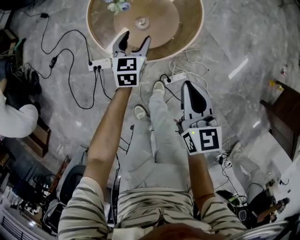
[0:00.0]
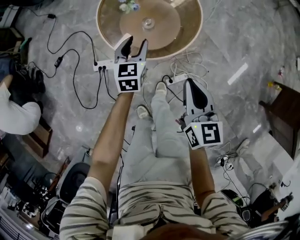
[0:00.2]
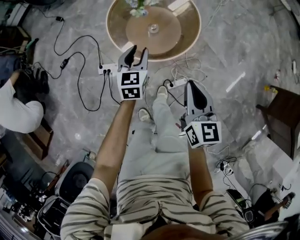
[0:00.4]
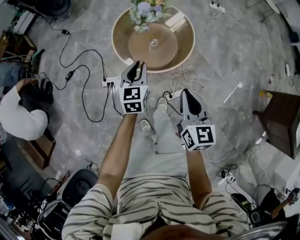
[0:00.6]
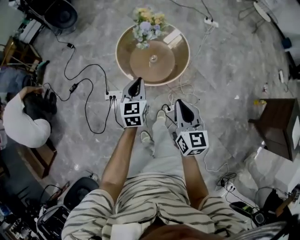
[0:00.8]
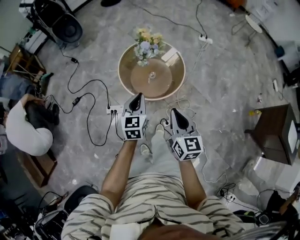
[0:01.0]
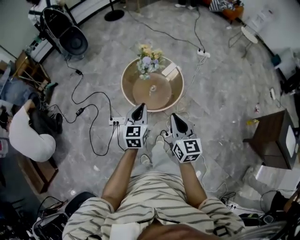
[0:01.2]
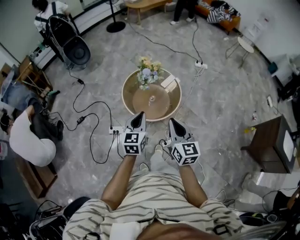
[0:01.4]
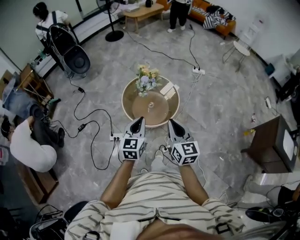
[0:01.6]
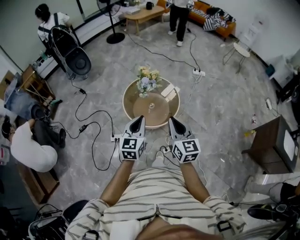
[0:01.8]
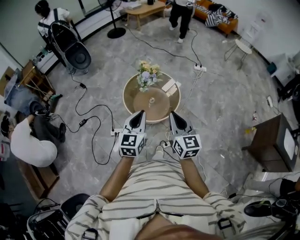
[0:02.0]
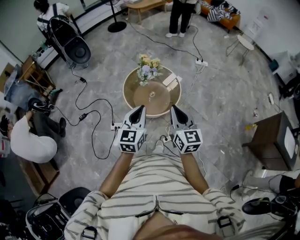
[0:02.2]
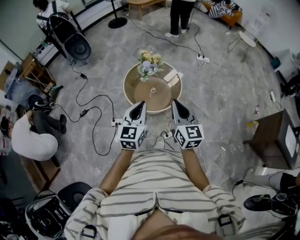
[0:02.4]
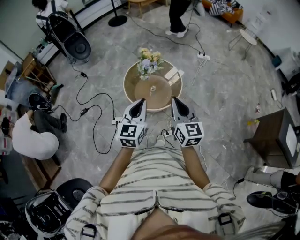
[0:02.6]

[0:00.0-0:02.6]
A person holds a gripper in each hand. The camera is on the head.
0:00.0 to 0:01.2: The right gripper goes some 30 cm upward, while the left gripper is displaced upward and backward by some 40 cm, and closes.
0:01.2 to 0:02.6: Both grippers travel together upward, roughly 10 cm.

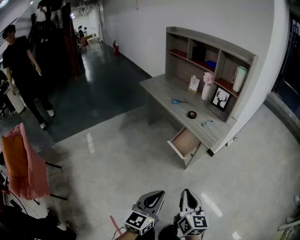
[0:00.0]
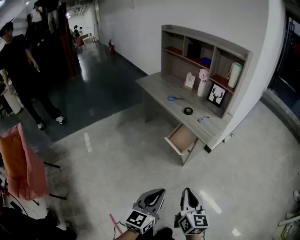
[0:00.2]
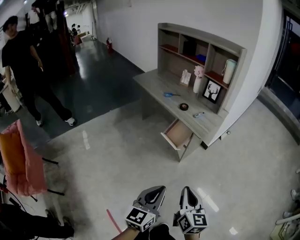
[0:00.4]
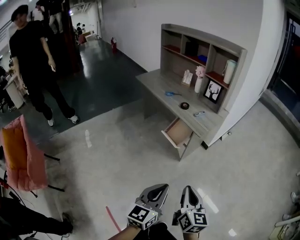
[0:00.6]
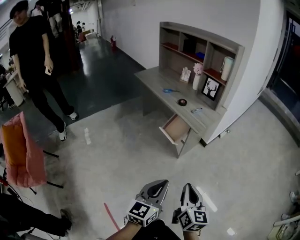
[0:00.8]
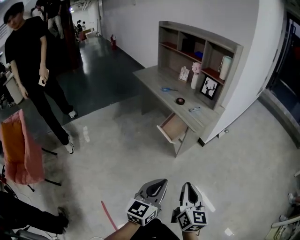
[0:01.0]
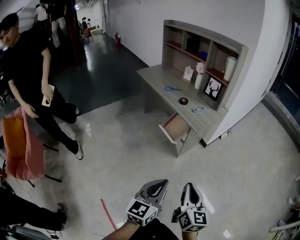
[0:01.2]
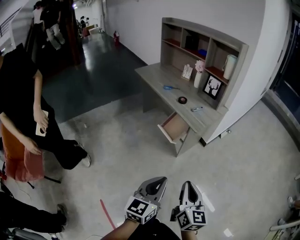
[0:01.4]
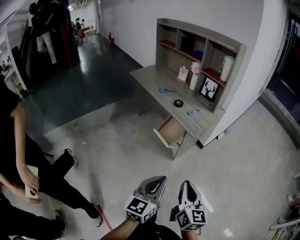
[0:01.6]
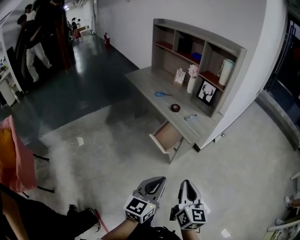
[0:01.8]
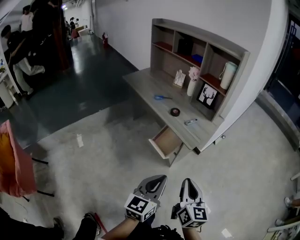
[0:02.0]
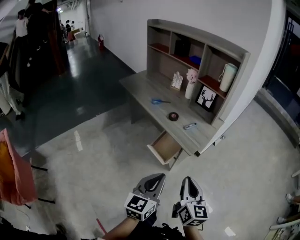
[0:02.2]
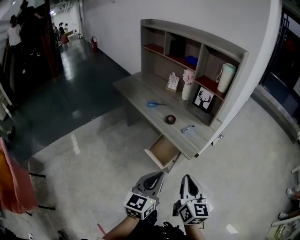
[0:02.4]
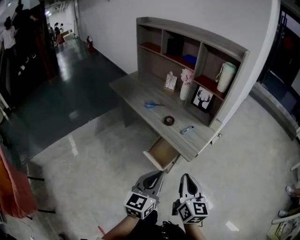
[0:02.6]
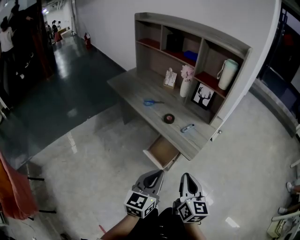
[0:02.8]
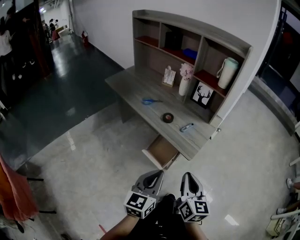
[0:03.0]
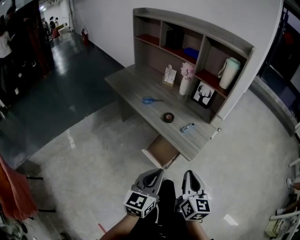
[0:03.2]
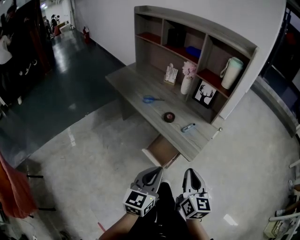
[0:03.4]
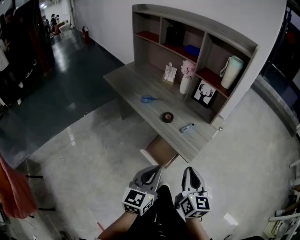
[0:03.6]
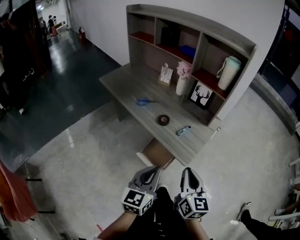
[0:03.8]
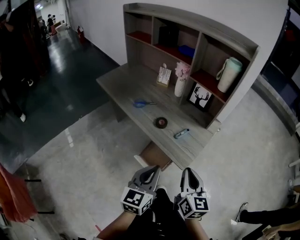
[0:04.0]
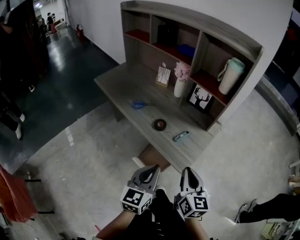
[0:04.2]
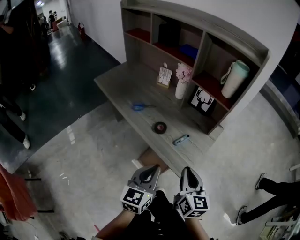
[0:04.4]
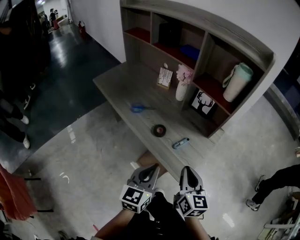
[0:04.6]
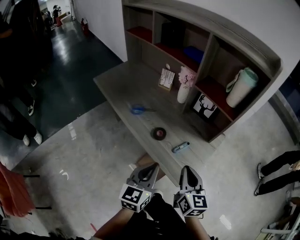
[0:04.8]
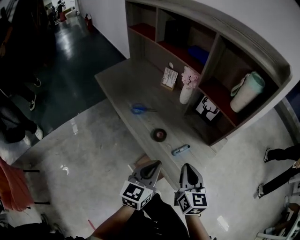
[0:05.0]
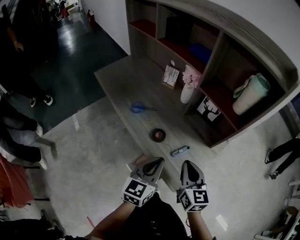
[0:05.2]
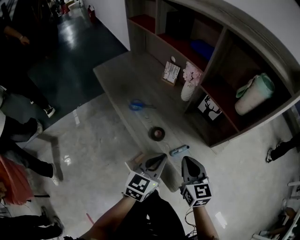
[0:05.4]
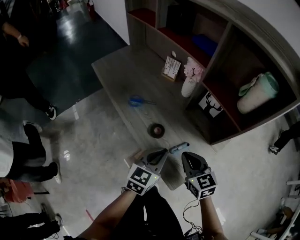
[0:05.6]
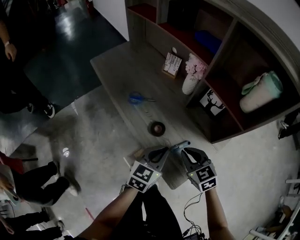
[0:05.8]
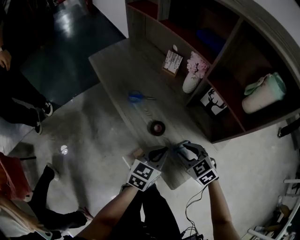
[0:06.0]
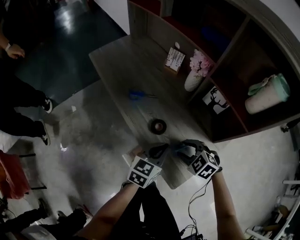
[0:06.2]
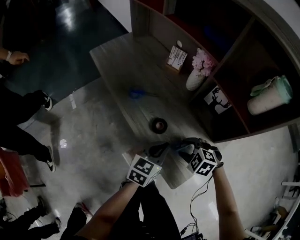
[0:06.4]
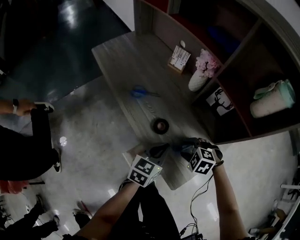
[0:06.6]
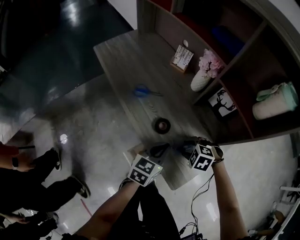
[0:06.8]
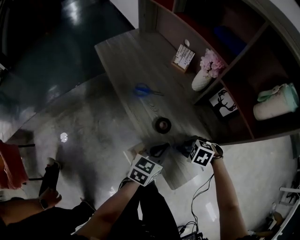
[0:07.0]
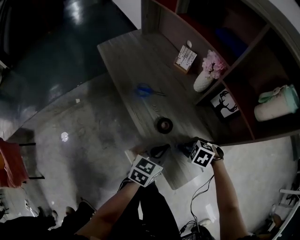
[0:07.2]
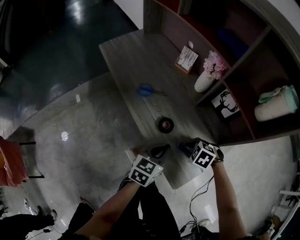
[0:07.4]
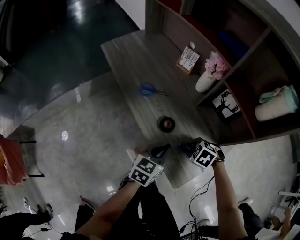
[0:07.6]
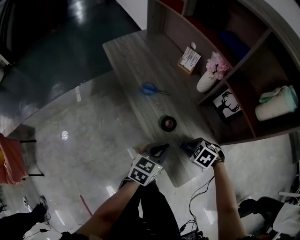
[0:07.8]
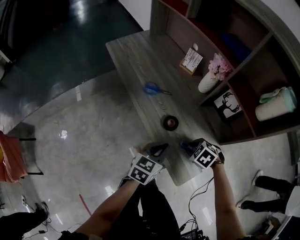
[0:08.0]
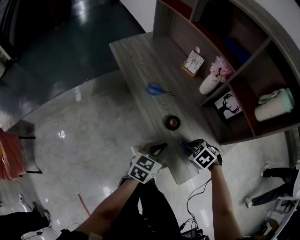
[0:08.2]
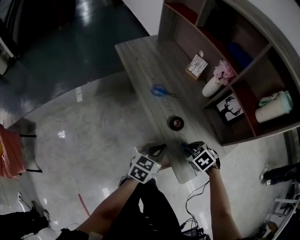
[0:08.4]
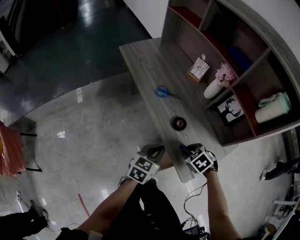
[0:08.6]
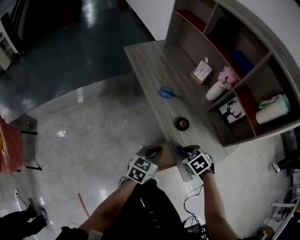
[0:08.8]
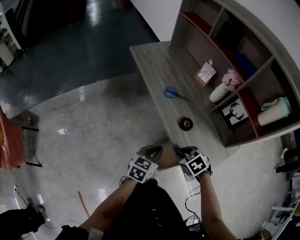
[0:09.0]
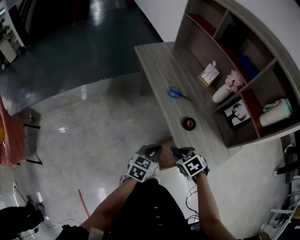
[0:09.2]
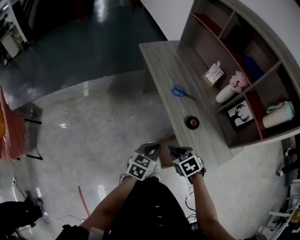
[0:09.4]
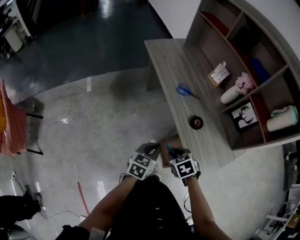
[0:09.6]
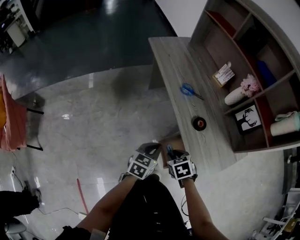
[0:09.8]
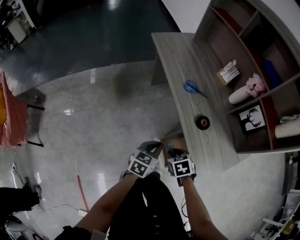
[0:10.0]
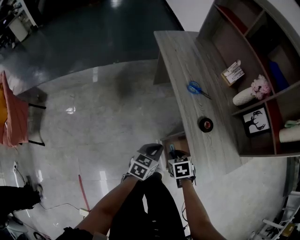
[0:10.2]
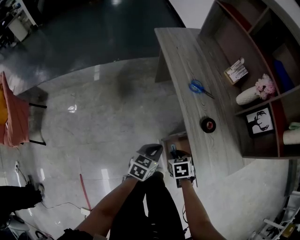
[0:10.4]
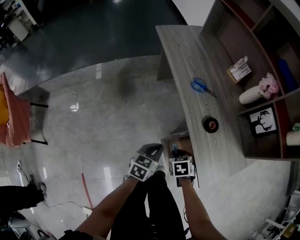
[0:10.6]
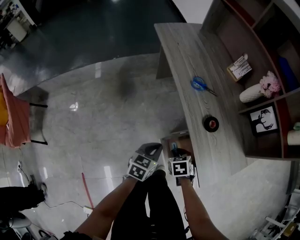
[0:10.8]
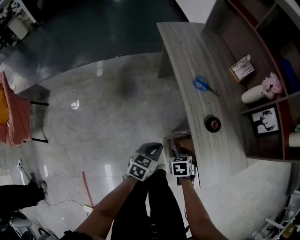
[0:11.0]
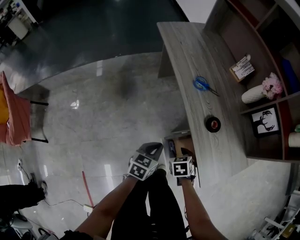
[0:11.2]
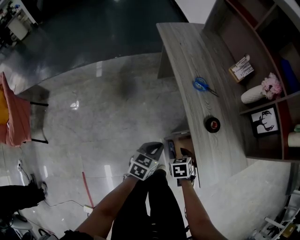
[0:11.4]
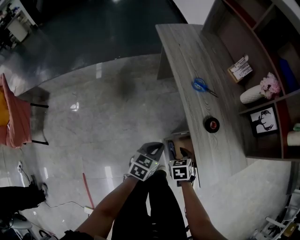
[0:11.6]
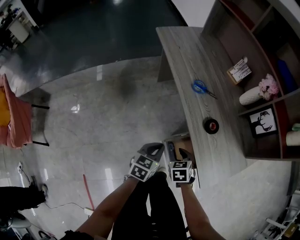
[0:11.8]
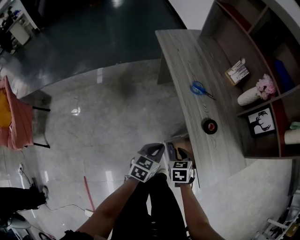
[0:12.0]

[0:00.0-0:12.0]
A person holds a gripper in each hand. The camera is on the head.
0:00.0 to 0:01.6: Both grippers move to the right, some 10 cm.
0:01.6 to 0:03.0: Both grippers travel together forward, roughly 25 cm.
0:03.0 to 0:04.4: The two grippers go about 15 cm forward.
0:04.4 to 0:06.0: Both grippers travel together forward and downward, some 20 cm. The right gripper angles its fingers downward, by some 30 degrees, and opens.
0:06.0 to 0:07.6: The right gripper moves downward, approximately 10 cm, and changes its angle by about 40 degrees.
0:07.6 to 0:09.0: The right gripper shifts by approximately 15 cm, while the left gripper shifts by roughly 15 cm.
0:09.0 to 0:10.4: Both grippers move downward and to the left, approximately 15 cm.
0:10.4 to 0:12.0: The grippers move only a little.

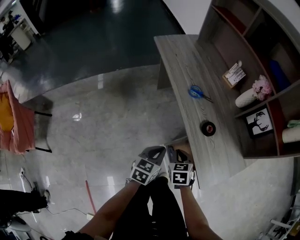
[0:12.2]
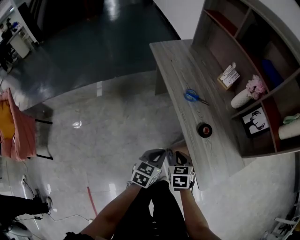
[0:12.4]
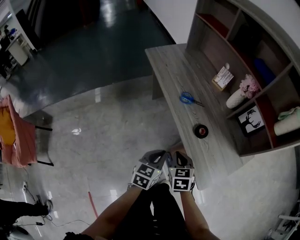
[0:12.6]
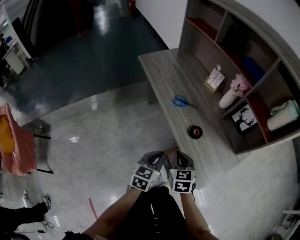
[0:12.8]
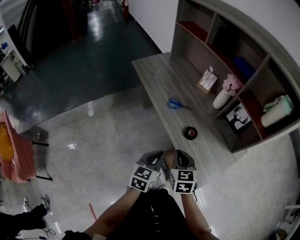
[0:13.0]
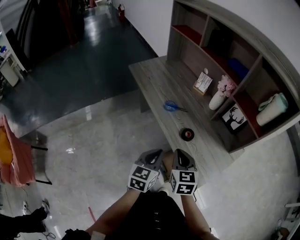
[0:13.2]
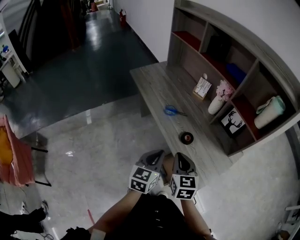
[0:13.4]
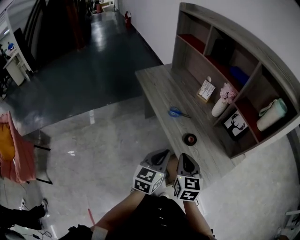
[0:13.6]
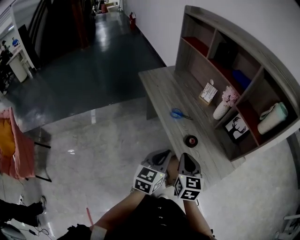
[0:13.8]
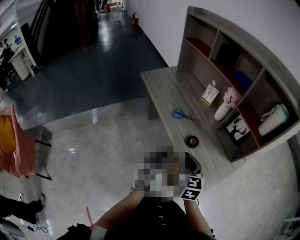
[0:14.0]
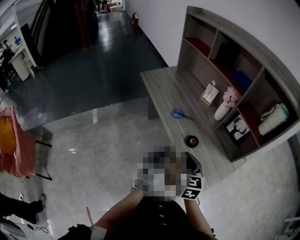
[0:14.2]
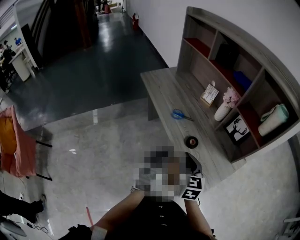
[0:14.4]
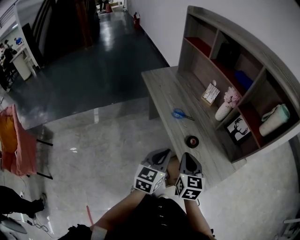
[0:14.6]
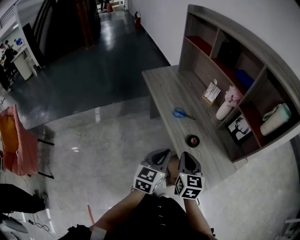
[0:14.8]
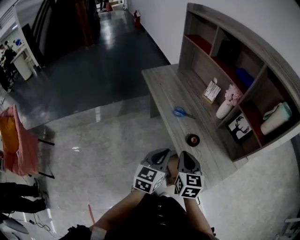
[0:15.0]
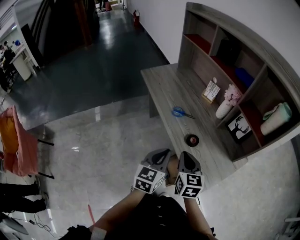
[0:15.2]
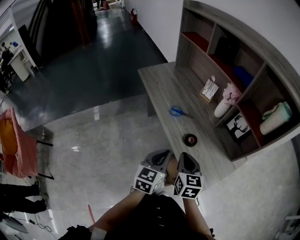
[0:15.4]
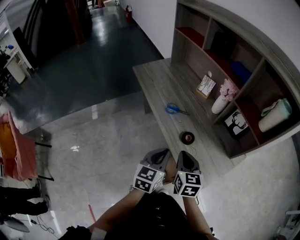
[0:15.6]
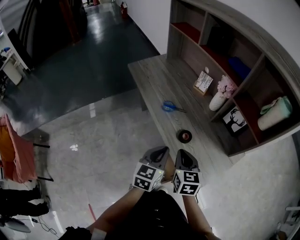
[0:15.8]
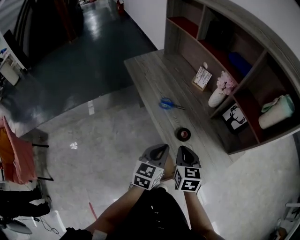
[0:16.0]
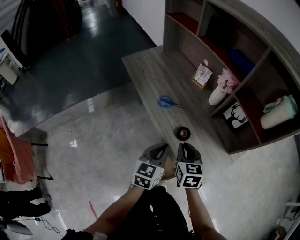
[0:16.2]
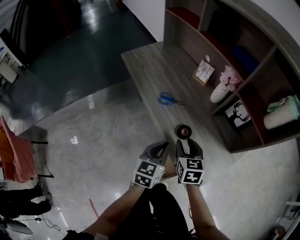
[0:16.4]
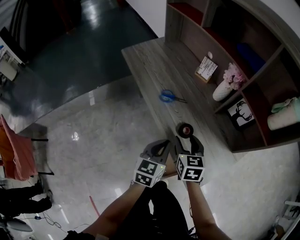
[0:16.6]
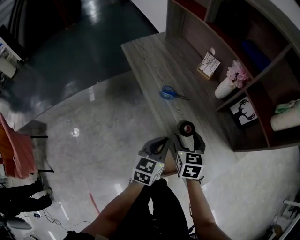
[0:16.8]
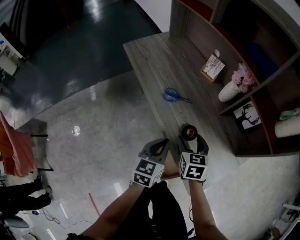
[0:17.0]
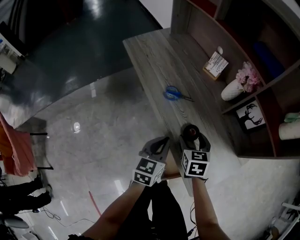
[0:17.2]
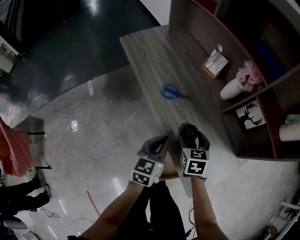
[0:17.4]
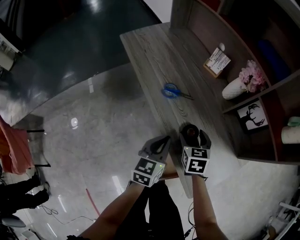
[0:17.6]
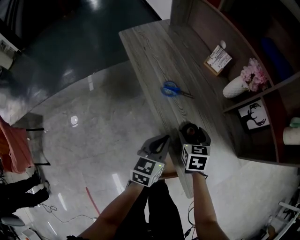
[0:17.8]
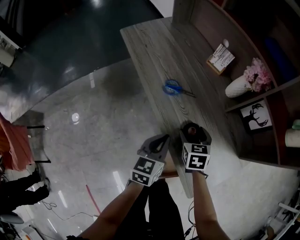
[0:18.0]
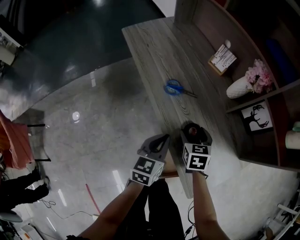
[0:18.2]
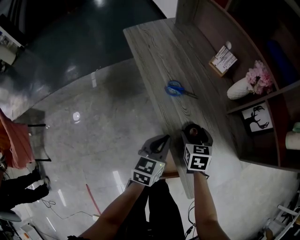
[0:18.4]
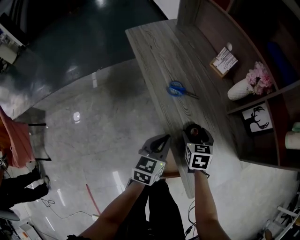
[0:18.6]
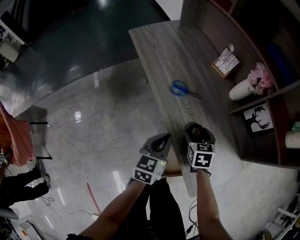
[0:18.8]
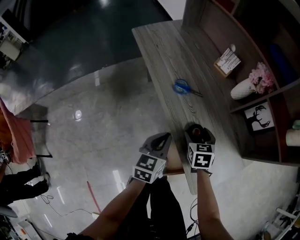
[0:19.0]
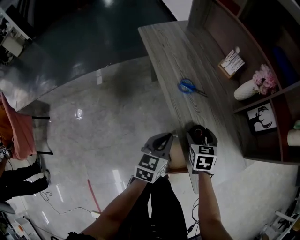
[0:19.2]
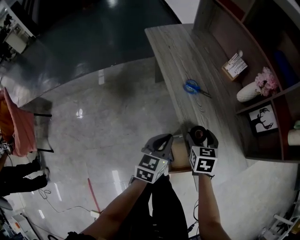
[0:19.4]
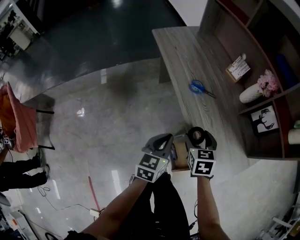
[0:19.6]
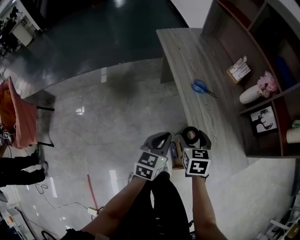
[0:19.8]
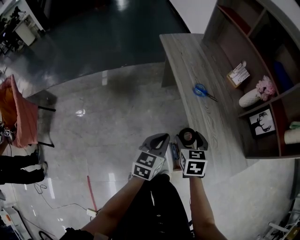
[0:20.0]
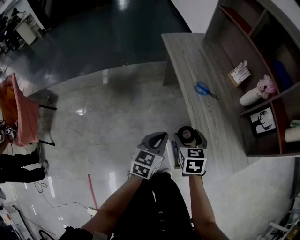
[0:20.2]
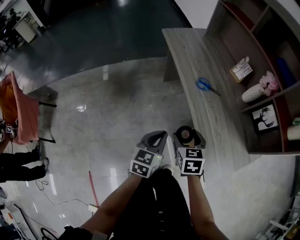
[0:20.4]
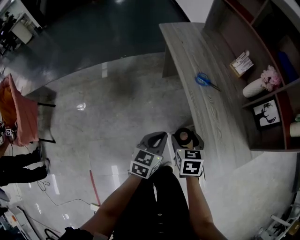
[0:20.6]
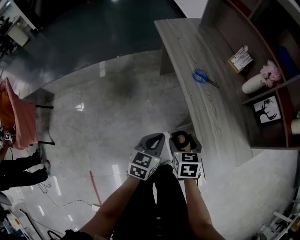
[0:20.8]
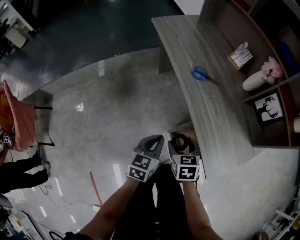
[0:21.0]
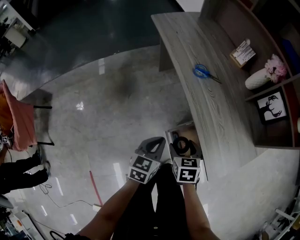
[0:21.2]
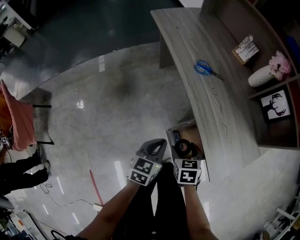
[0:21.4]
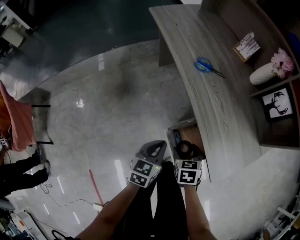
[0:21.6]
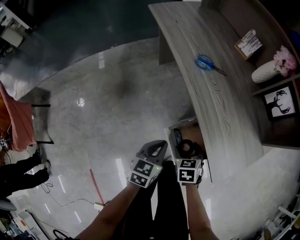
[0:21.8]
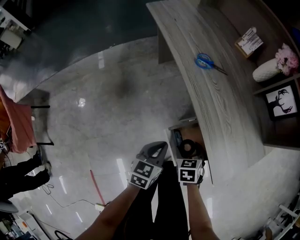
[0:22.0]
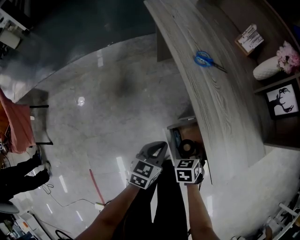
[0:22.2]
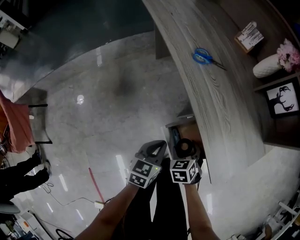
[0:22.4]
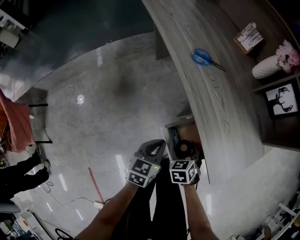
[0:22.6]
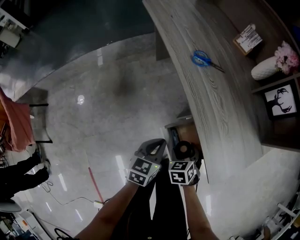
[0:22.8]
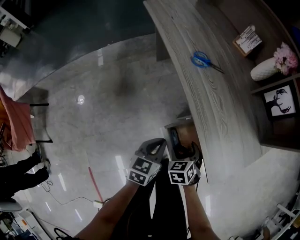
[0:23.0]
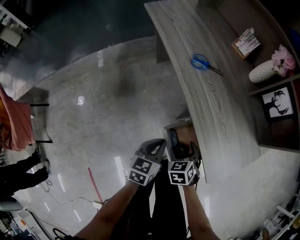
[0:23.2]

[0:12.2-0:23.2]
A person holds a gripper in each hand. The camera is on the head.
0:12.2 to 0:13.8: Both grippers travel together upward, about 20 cm. The left gripper changes its angle by about 20 degrees. The right gripper angles its fingers upward, by about 30 degrees.
0:13.8 to 0:15.4: There are only small adjustments of the grippers.
0:15.4 to 0:17.0: The left gripper heads downward and forward, covering about 10 cm, while the right gripper travels forward and downward by roughly 15 cm, and opens up.
0:17.0 to 0:18.4: The right gripper travels downward by approximately 5 cm.
0:18.4 to 0:20.0: The right gripper goes about 20 cm to the left, backward and upward; the left gripper shifts about 15 cm to the left and backward.
0:20.0 to 0:21.6: The two grippers go some 15 cm downward and backward.
0:21.6 to 0:23.2: The grippers move only a little.
